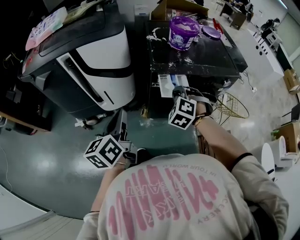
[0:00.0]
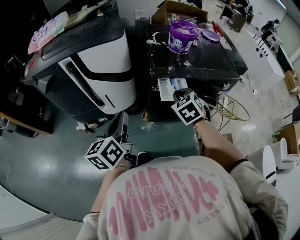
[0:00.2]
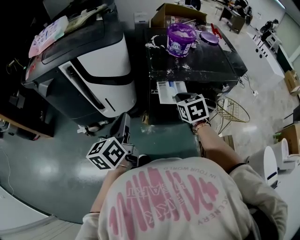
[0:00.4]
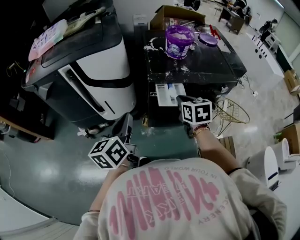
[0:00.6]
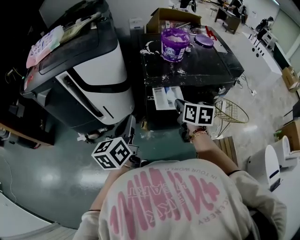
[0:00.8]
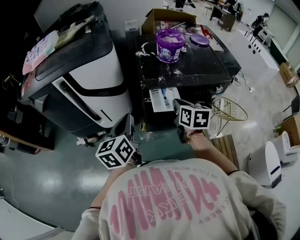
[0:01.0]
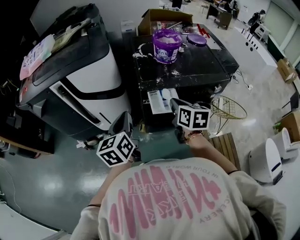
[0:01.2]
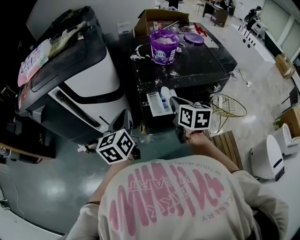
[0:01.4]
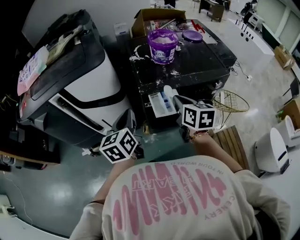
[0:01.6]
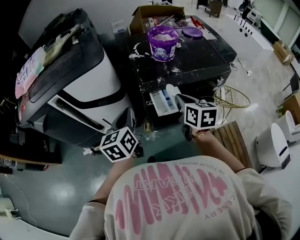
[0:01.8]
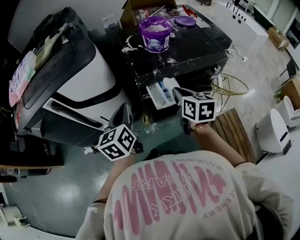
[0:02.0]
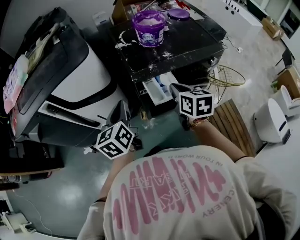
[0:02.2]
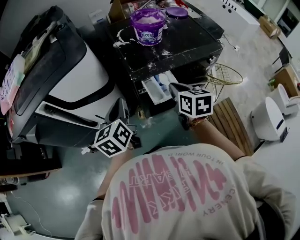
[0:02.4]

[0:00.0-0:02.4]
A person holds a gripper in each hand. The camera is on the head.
0:00.0 to 0:01.2: The left gripper changes place by some 10 cm.
0:01.2 to 0:02.4: The left gripper moves roughly 10 cm.

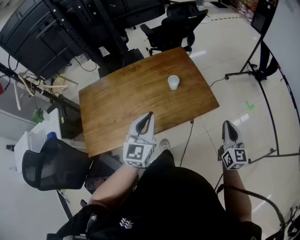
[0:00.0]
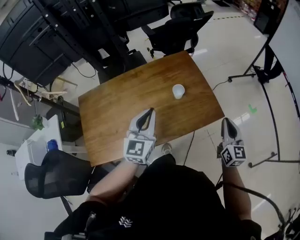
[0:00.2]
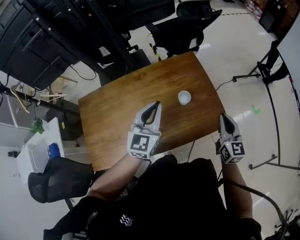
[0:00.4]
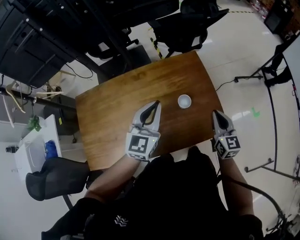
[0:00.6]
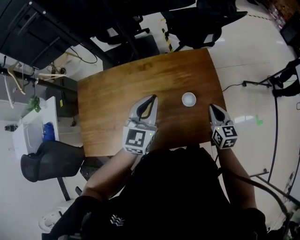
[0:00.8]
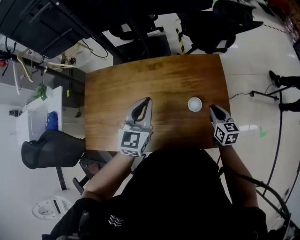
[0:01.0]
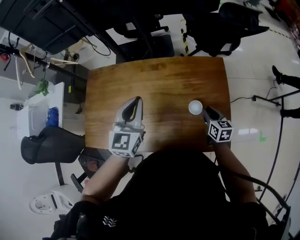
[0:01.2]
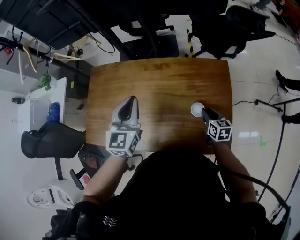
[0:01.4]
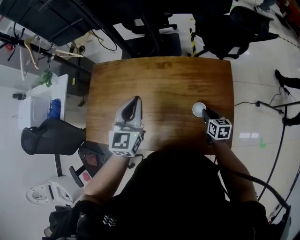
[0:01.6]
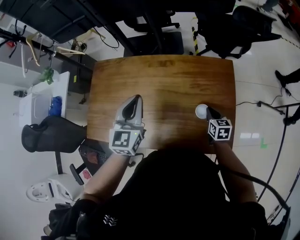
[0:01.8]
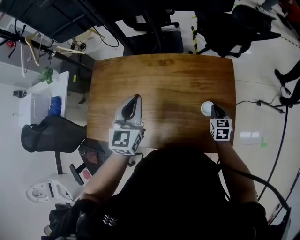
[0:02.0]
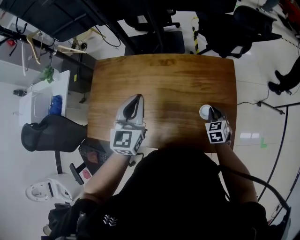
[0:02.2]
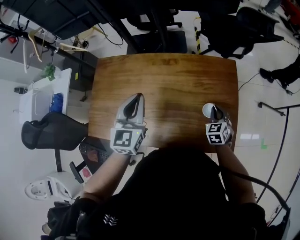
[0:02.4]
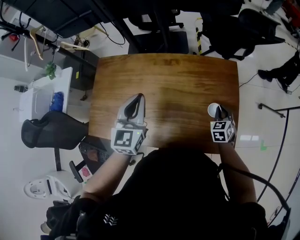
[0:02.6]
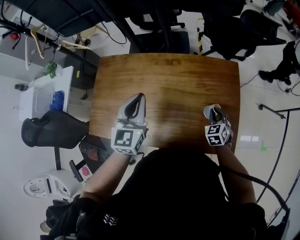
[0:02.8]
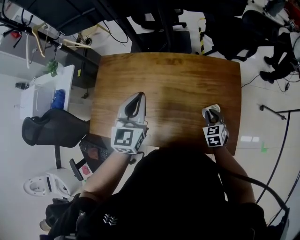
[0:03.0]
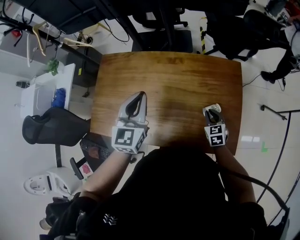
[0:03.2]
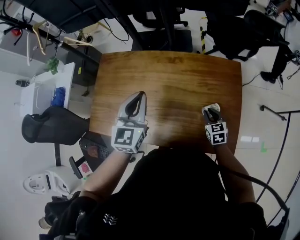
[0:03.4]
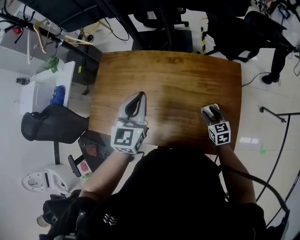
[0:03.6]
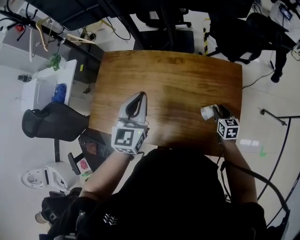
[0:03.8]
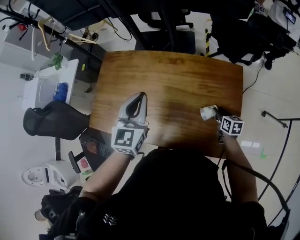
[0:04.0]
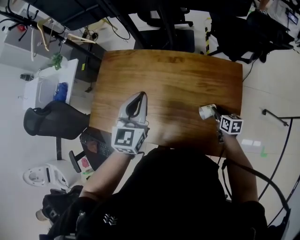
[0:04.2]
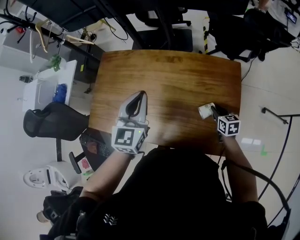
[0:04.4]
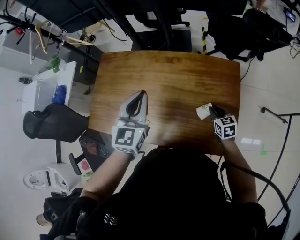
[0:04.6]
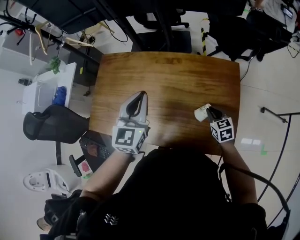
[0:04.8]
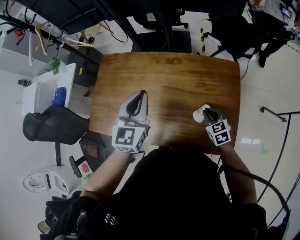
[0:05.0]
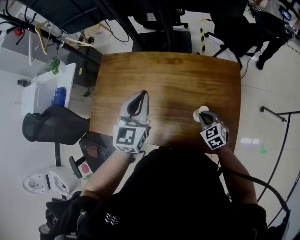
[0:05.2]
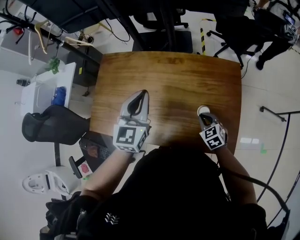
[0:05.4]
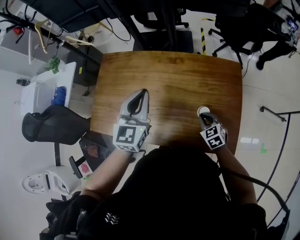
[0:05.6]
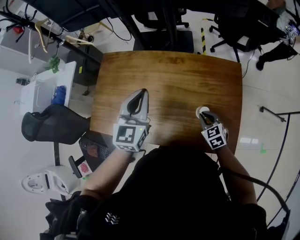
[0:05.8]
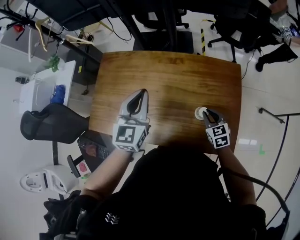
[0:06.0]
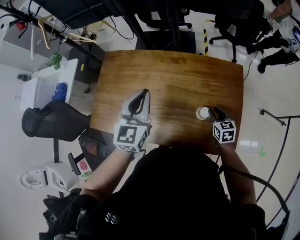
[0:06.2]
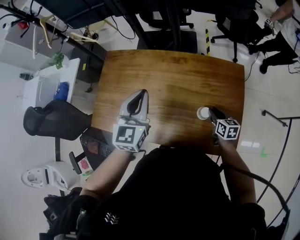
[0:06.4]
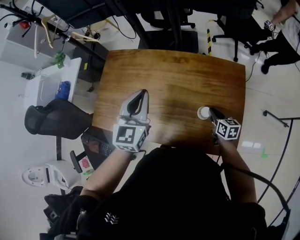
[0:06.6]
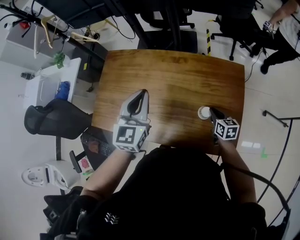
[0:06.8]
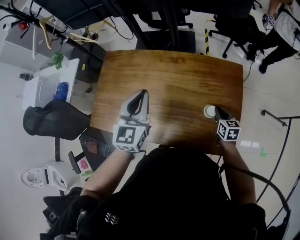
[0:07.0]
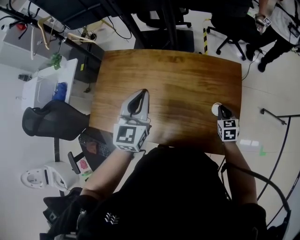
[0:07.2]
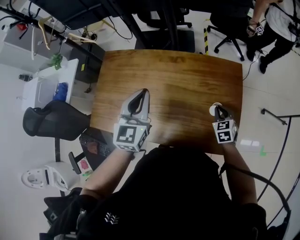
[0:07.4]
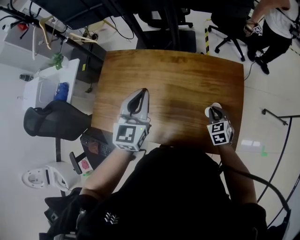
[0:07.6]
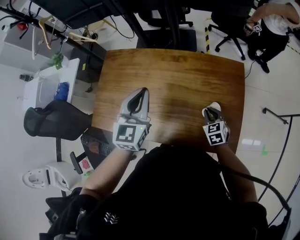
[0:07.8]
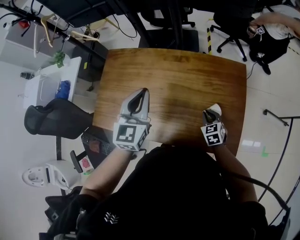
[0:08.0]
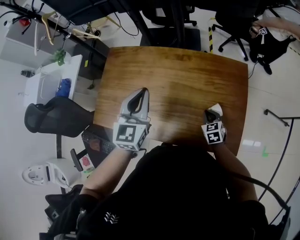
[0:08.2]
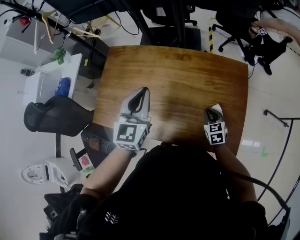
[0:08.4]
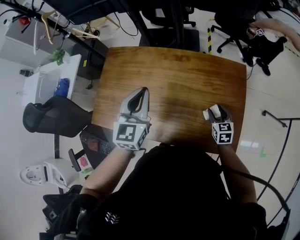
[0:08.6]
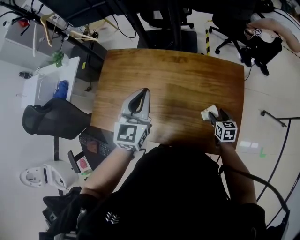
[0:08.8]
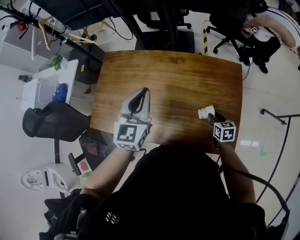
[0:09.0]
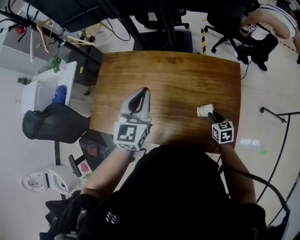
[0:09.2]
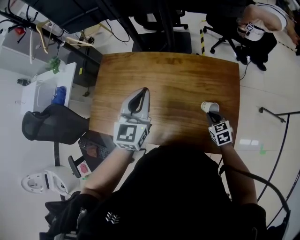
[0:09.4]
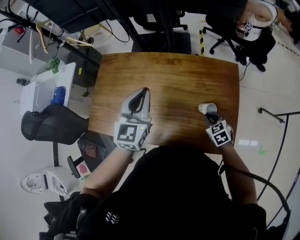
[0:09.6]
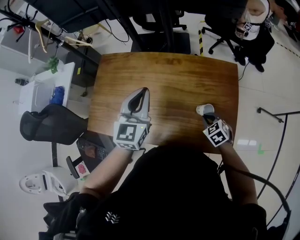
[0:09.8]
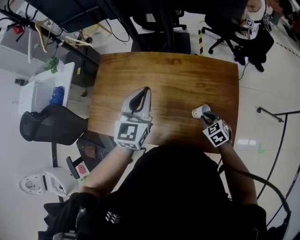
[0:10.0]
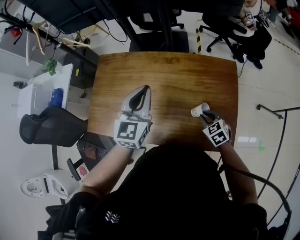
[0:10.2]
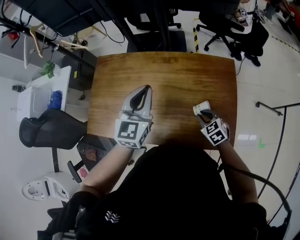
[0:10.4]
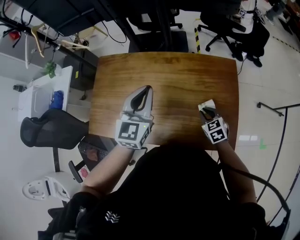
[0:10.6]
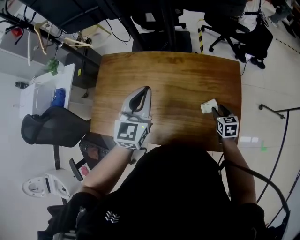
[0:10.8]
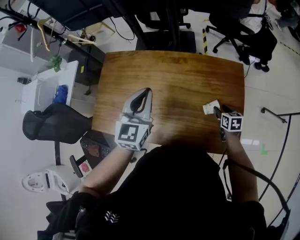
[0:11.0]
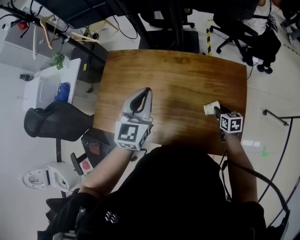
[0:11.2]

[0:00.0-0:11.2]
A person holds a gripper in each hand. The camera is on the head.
0:00.0 to 0:01.6: The left gripper ends up some 20 cm from where it was, and changes its angle by some 30 degrees; the right gripper moves roughly 40 cm, and angles its fingers downward, by about 30 degrees.
0:01.6 to 0:03.2: The right gripper rotates some 30 degrees.
0:03.2 to 0:04.8: The right gripper goes to the right and returns, roughly 10 cm each way, and opens and closes again.
0:04.8 to 0:06.4: The right gripper changes its angle by approximately 20 degrees.
0:06.4 to 0:08.0: The right gripper moves to the left, about 5 cm, and changes its angle by about 30 degrees.
0:08.0 to 0:09.6: The right gripper opens and closes again.
0:09.6 to 0:11.2: The right gripper shifts by some 5 cm, turns by approximately 30 degrees, and opens its fingers.

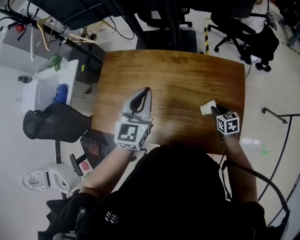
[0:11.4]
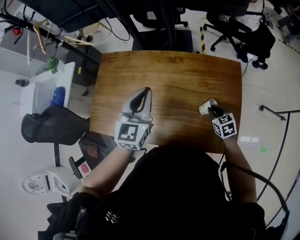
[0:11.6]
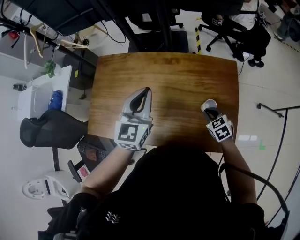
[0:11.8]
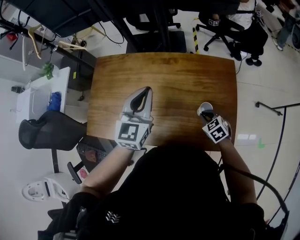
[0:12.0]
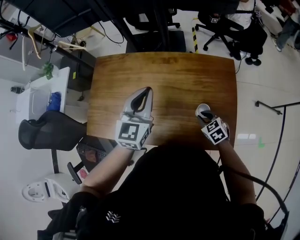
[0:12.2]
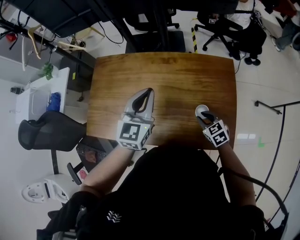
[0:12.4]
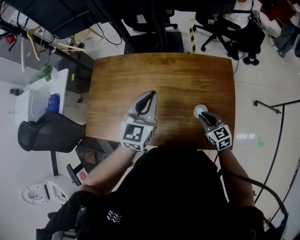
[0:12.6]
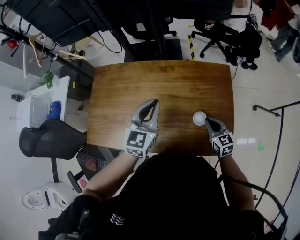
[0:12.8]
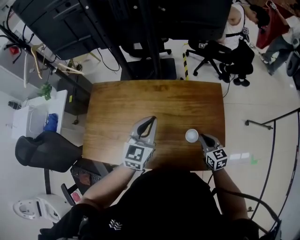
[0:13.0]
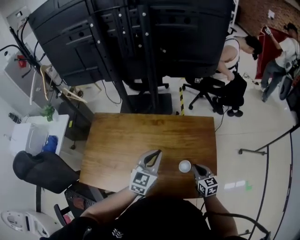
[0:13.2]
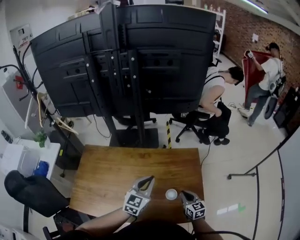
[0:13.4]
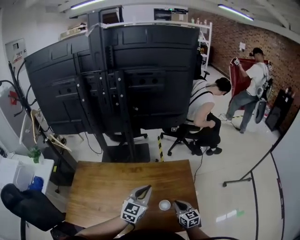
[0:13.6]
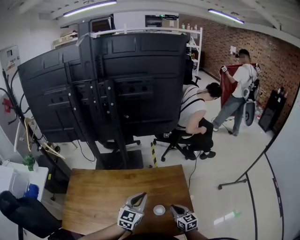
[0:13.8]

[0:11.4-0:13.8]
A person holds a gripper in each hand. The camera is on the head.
0:11.4 to 0:12.6: The right gripper goes some 10 cm backward, upward and to the left, while the left gripper shifts by about 5 cm.
0:12.6 to 0:13.8: The left gripper goes about 15 cm to the right; the right gripper shifts about 5 cm to the right, and changes its angle by about 20 degrees.

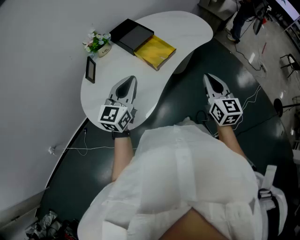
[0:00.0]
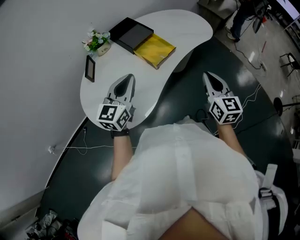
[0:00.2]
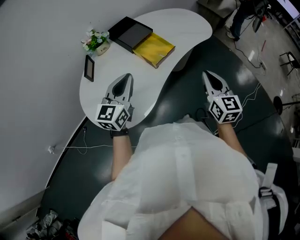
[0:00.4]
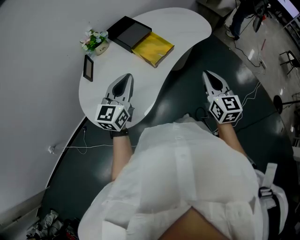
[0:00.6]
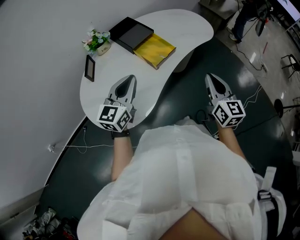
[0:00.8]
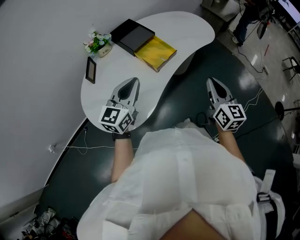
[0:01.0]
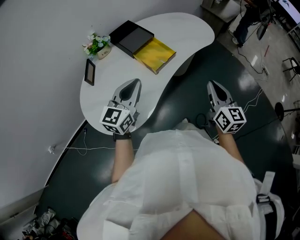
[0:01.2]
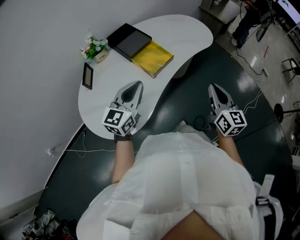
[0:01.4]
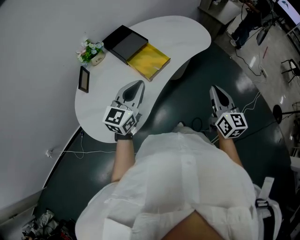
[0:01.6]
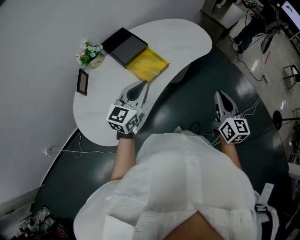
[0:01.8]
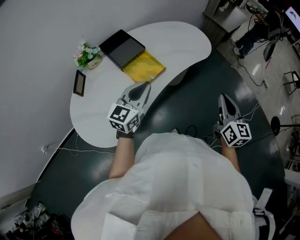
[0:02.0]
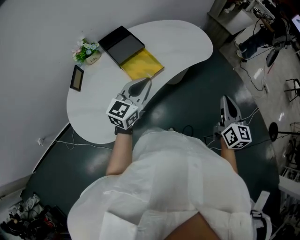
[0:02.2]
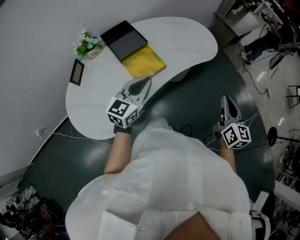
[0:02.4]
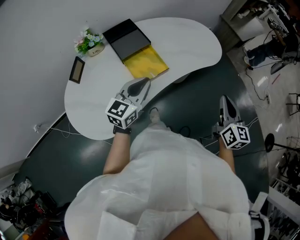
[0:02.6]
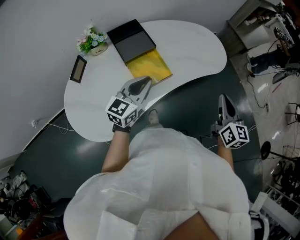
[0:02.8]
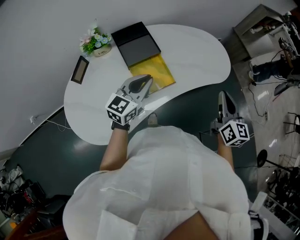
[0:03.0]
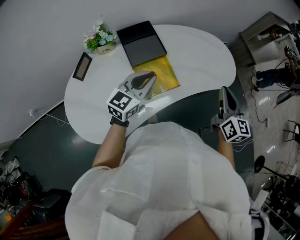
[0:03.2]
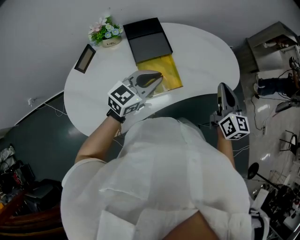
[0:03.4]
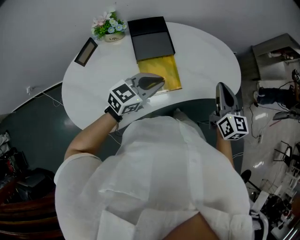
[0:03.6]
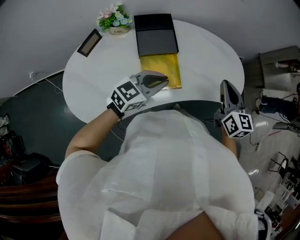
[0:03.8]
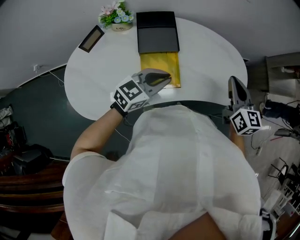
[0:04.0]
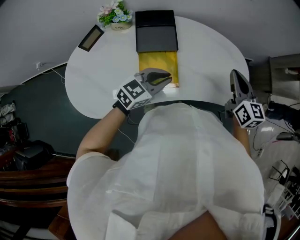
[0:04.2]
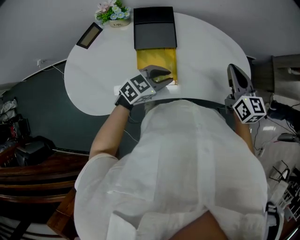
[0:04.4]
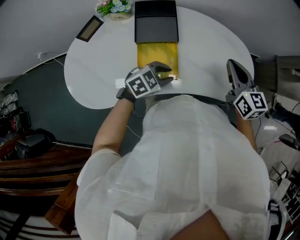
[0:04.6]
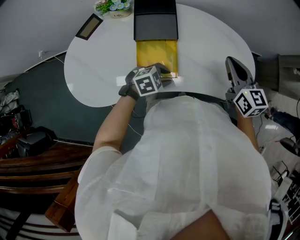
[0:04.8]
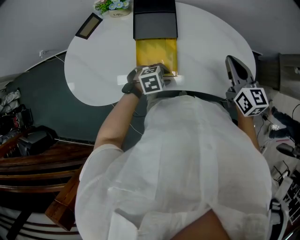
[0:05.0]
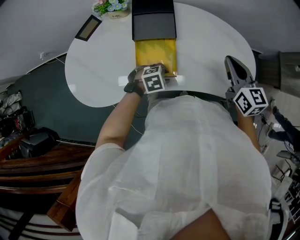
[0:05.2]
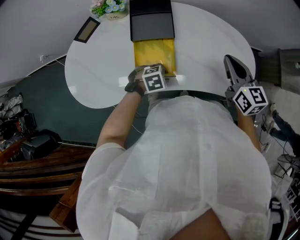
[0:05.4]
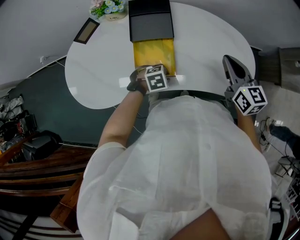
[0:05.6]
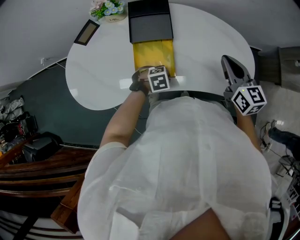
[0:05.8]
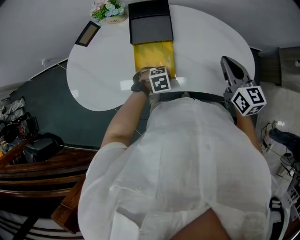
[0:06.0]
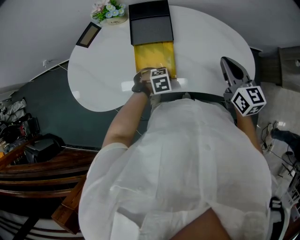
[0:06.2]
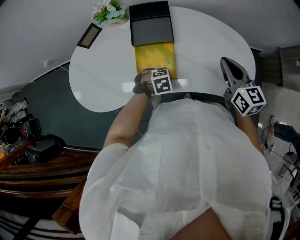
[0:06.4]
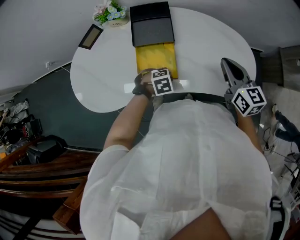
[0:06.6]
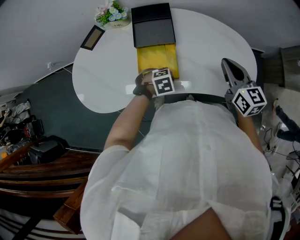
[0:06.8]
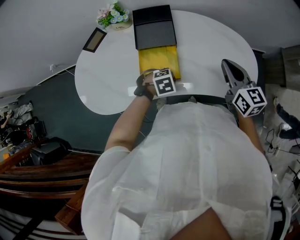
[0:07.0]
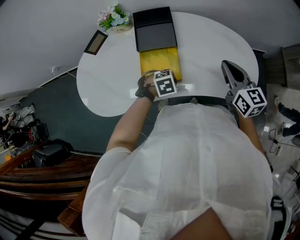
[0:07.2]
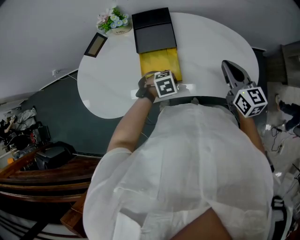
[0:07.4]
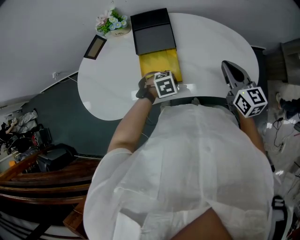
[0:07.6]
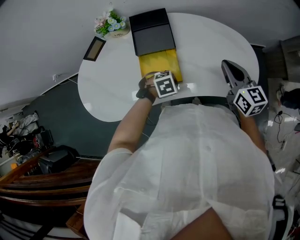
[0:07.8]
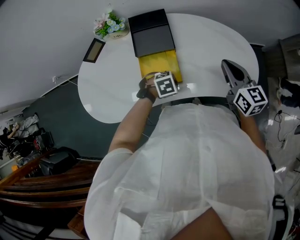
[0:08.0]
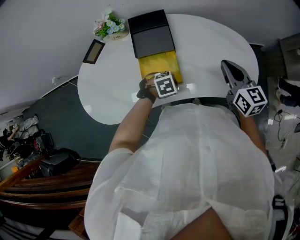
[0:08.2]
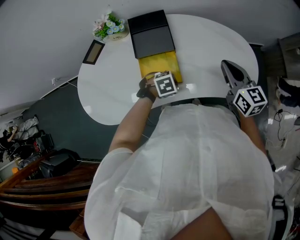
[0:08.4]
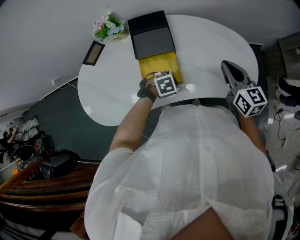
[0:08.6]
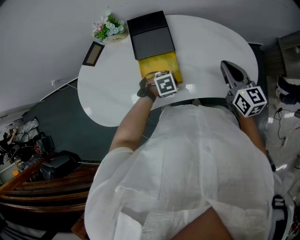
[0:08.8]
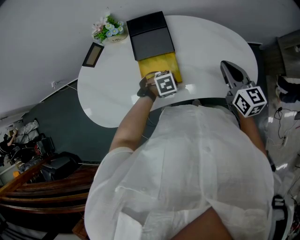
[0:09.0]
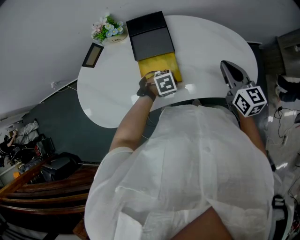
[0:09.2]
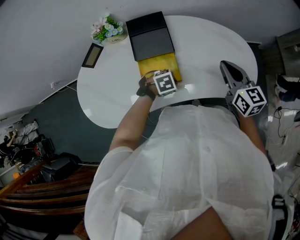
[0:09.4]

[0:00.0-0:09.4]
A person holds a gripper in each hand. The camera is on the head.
0:00.0 to 0:01.6: The left gripper moves to the right and forward, roughly 10 cm; the right gripper moves to the right, approximately 10 cm.
0:01.6 to 0:03.2: Both grippers move forward, roughly 25 cm.
0:03.2 to 0:04.8: The left gripper is displaced downward and to the right by some 20 cm, and points its fingers about 50 degrees further downward. Meanwhile the right gripper goes roughly 20 cm forward, and rotates some 40 degrees.
0:04.8 to 0:06.2: The left gripper heads downward, covering approximately 5 cm.
0:06.2 to 0:09.4: The grippers move only a little.
